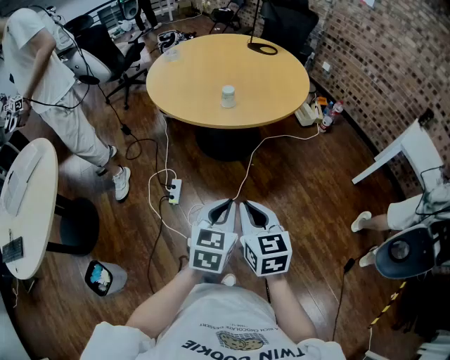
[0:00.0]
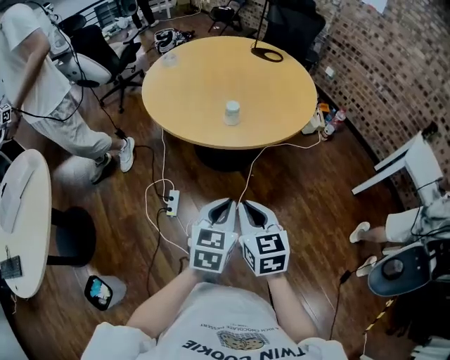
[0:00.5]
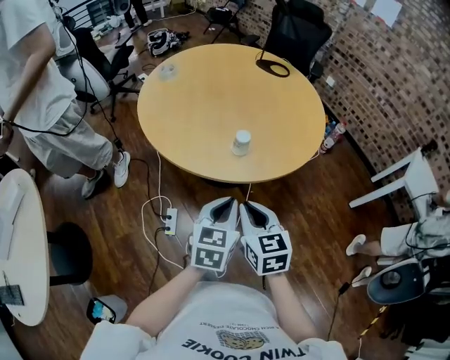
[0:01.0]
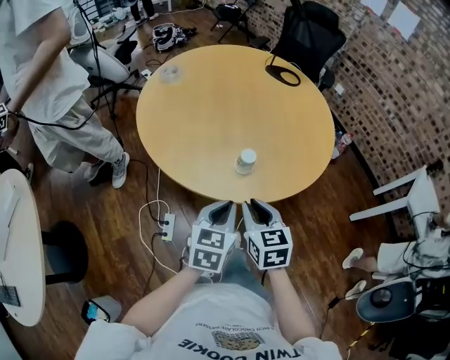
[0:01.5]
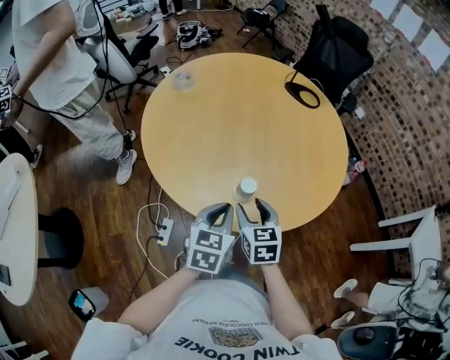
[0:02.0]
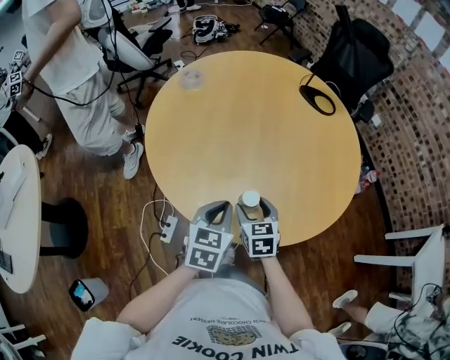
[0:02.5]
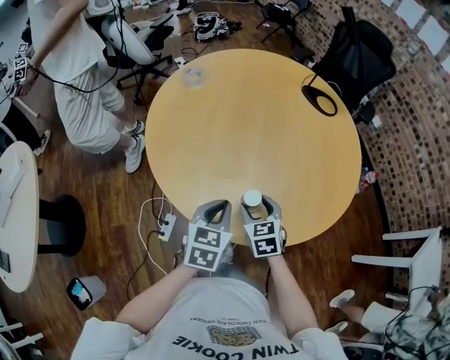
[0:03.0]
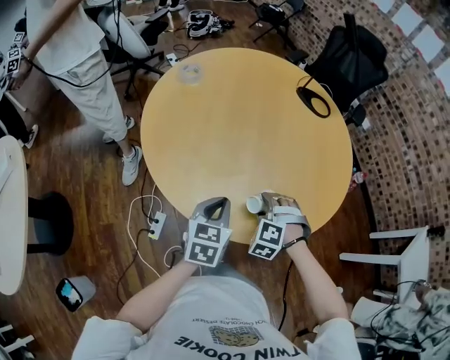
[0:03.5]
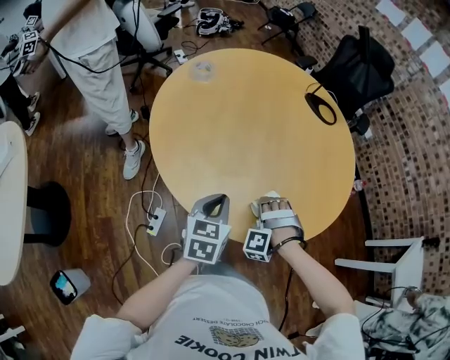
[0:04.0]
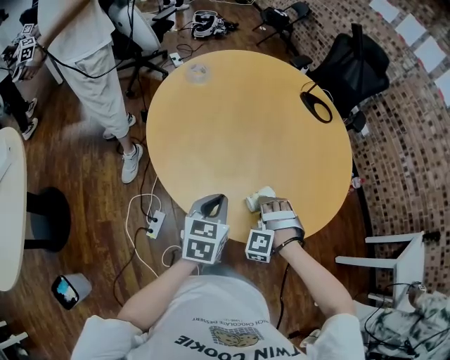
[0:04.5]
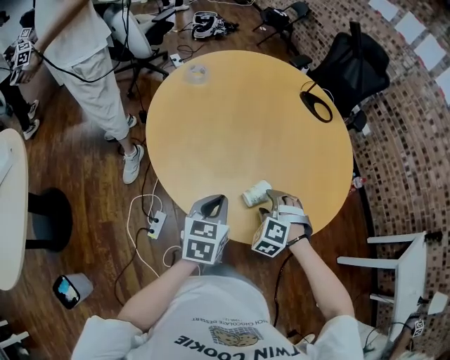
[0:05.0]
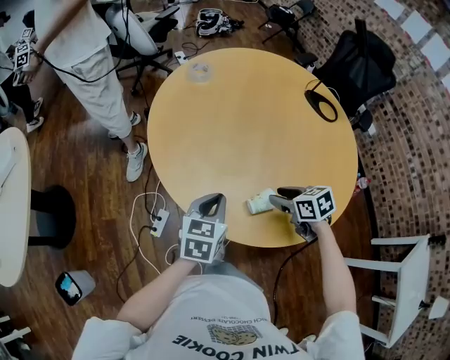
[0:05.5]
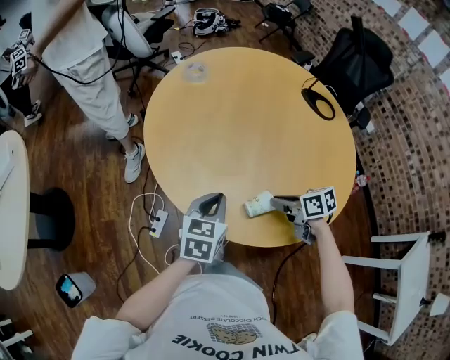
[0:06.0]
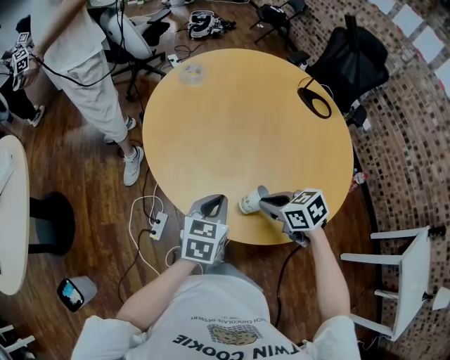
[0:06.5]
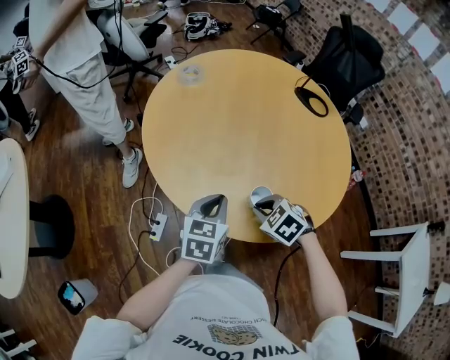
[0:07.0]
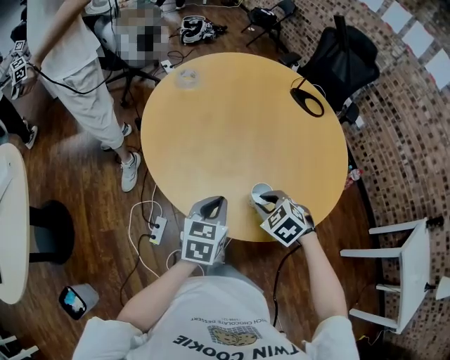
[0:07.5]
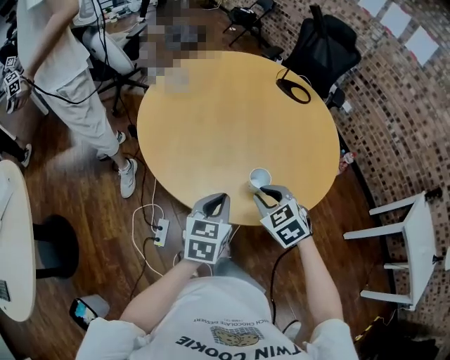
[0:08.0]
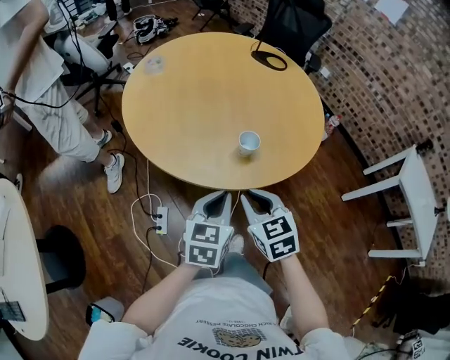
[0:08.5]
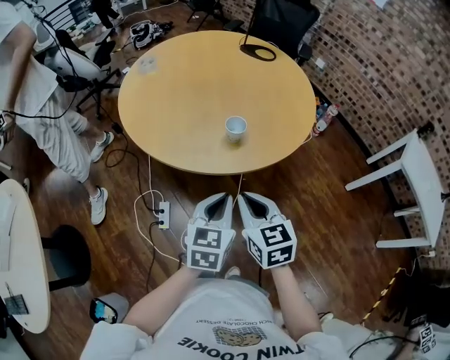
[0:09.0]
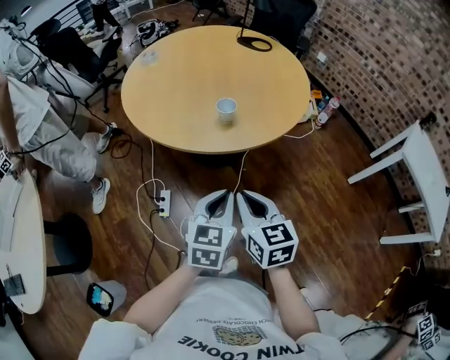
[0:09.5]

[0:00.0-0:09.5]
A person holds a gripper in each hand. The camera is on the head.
0:00.0 to 0:02.0: The pair of grippers is taken forward, some 50 cm. The right gripper opens its fingers.
0:02.0 to 0:04.0: The left gripper travels to the left and forward by roughly 10 cm. The right gripper travels downward and forward by some 10 cm, and rotates around the line of its fingers by about 110 degrees, counterclockwise from behind.
0:04.0 to 0:05.5: The right gripper travels upward by about 5 cm, and rolls clockwise, seen from behind, by some 90 degrees.
0:05.5 to 0:07.5: The right gripper shifts roughly 5 cm to the left, turns by some 40 degrees, and closes its fingers.
0:07.5 to 0:09.5: The grippers both shift backward by roughly 30 cm. The right gripper tilts its fingers some 40 degrees upward.

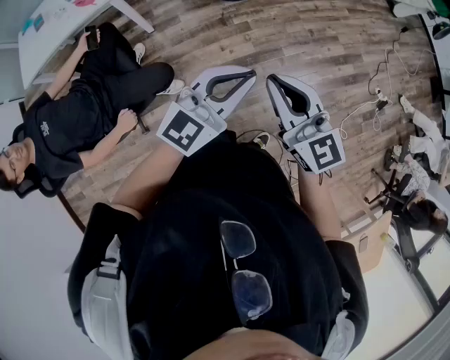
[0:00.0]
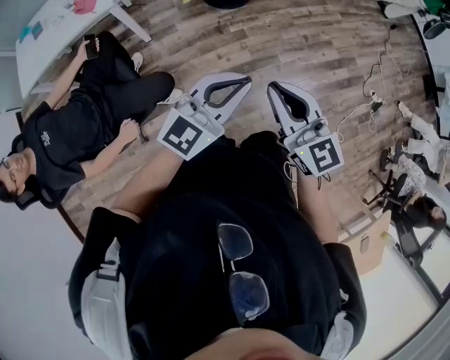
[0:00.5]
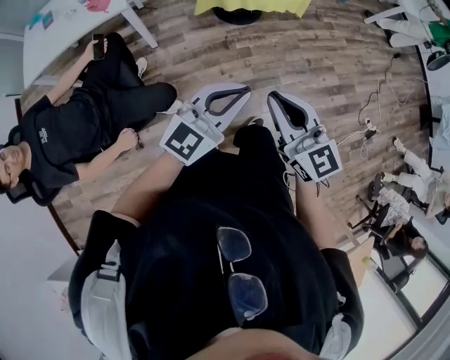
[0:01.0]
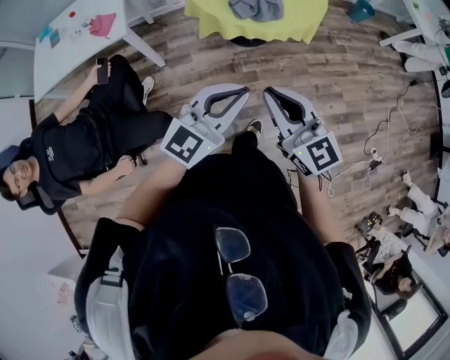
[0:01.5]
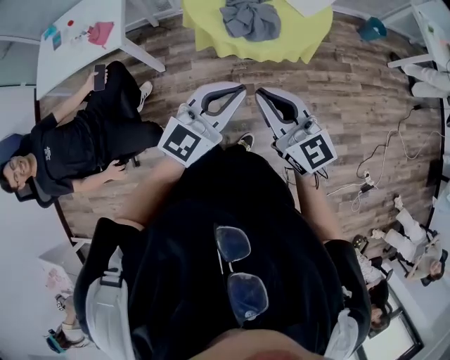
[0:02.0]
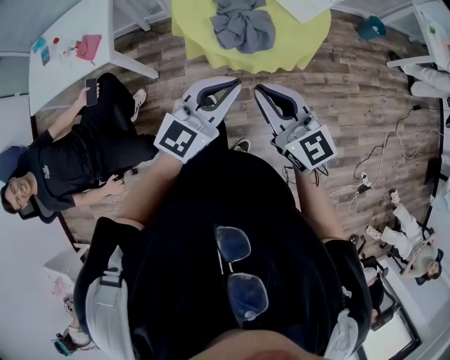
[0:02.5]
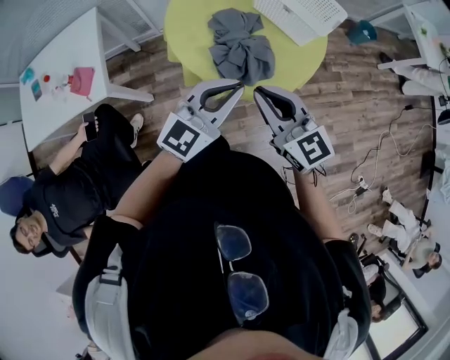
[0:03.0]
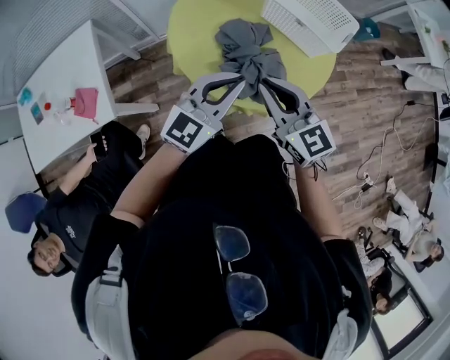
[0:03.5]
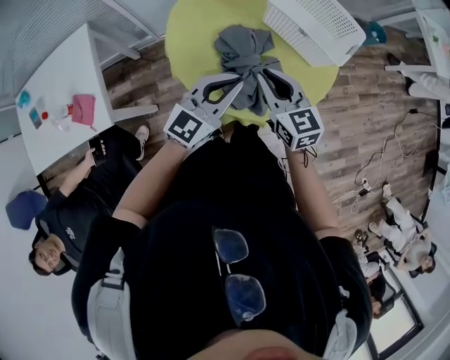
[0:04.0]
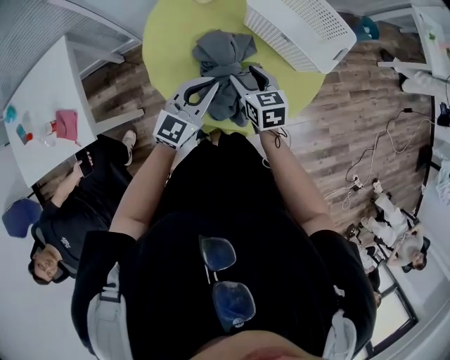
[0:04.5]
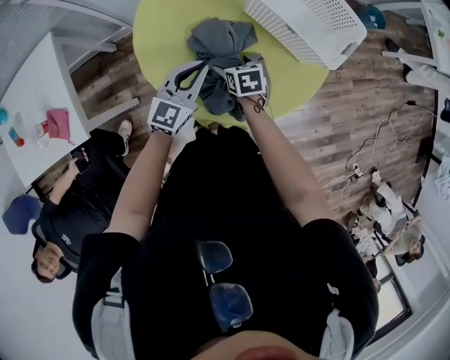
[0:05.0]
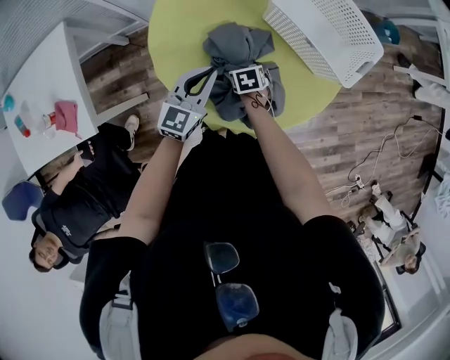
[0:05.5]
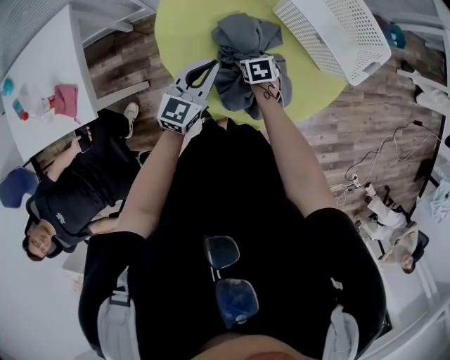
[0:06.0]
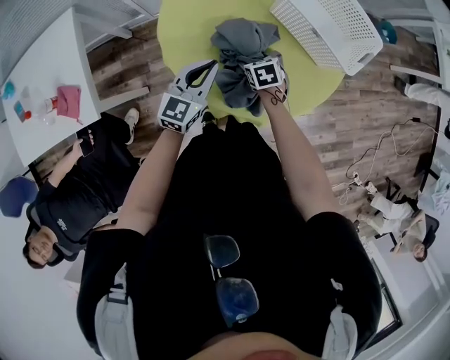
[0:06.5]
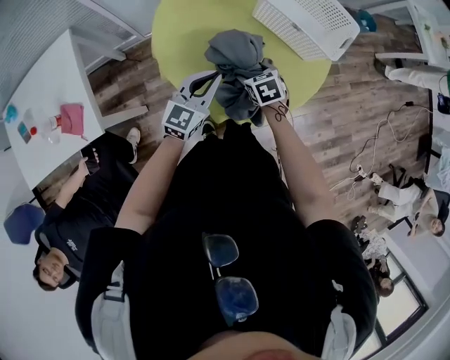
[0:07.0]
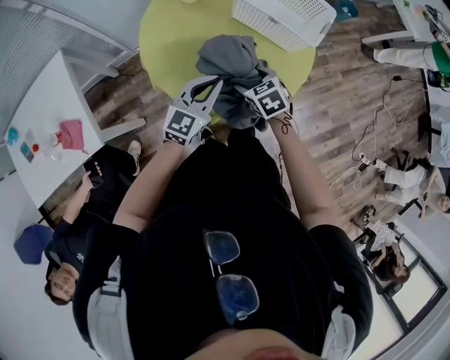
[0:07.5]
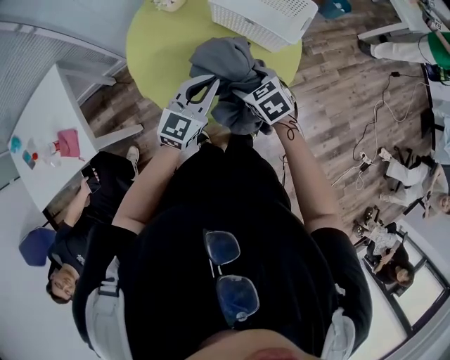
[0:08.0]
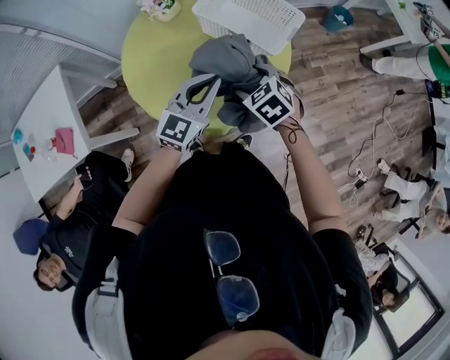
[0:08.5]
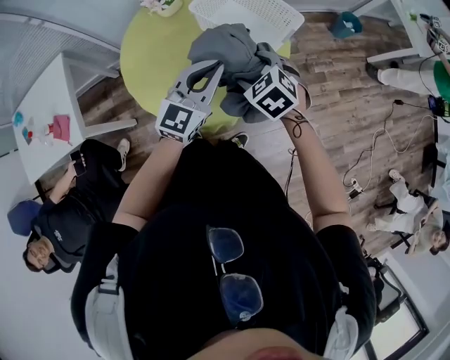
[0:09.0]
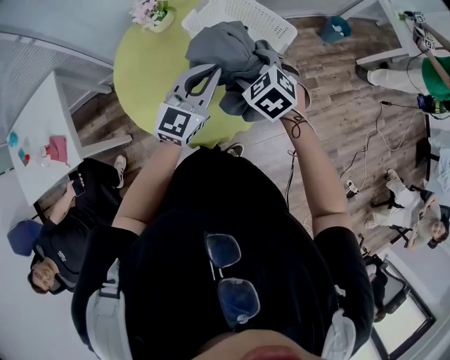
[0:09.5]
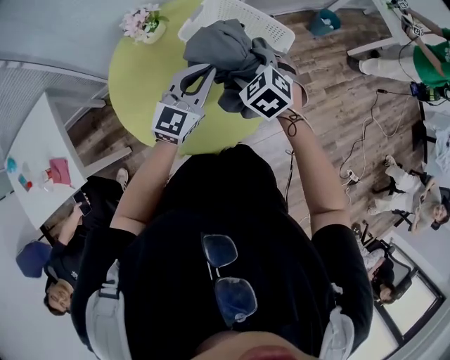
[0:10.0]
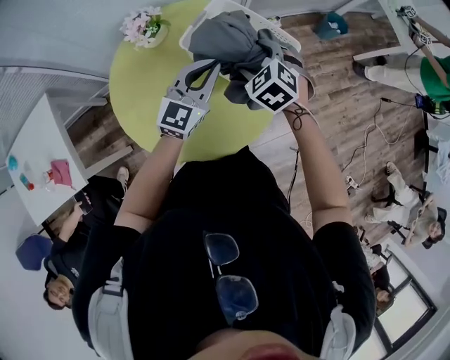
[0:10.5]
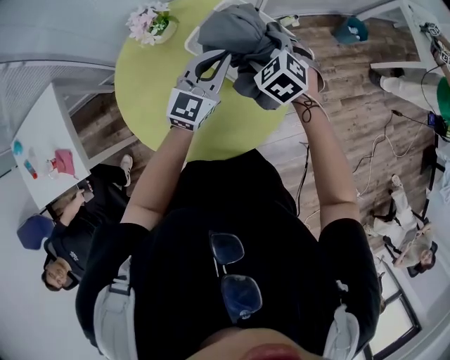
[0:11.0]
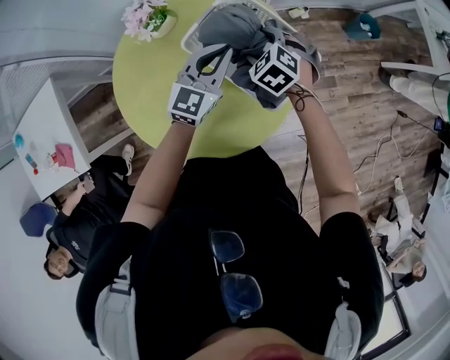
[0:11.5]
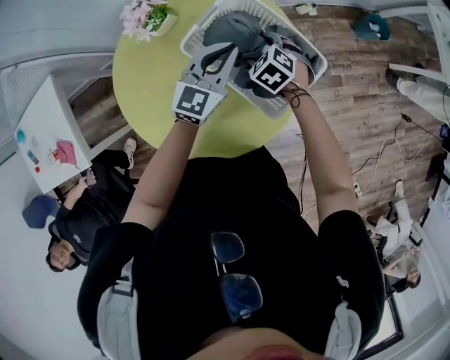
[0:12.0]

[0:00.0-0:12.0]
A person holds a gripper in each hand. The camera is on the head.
0:00.0 to 0:02.0: Both grippers travel together forward, roughly 35 cm.
0:02.0 to 0:04.0: Both grippers are carried forward, about 40 cm. The right gripper swivels about 20 degrees.
0:04.0 to 0:06.0: The left gripper travels downward and forward by about 20 cm, and rotates about 20 degrees. Meanwhile the right gripper travels downward by approximately 35 cm, angles its fingers downward, by some 40 degrees, and opens its fingers.
0:06.0 to 0:08.0: The left gripper goes some 20 cm to the right, upward and backward, and changes its angle by roughly 20 degrees. The right gripper goes about 30 cm upward, backward and to the right.
0:08.0 to 0:10.0: The right gripper travels forward, to the right and upward by about 20 cm, and swivels about 20 degrees; the left gripper is displaced forward and to the right by approximately 15 cm.
0:10.0 to 0:12.0: The grippers both shift forward and downward by roughly 20 cm.

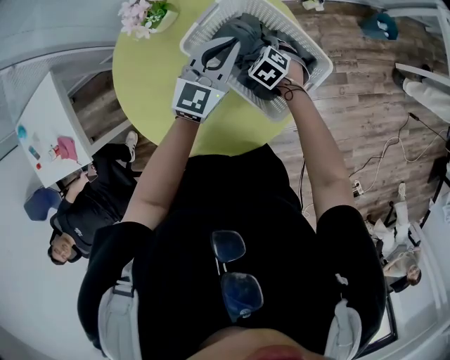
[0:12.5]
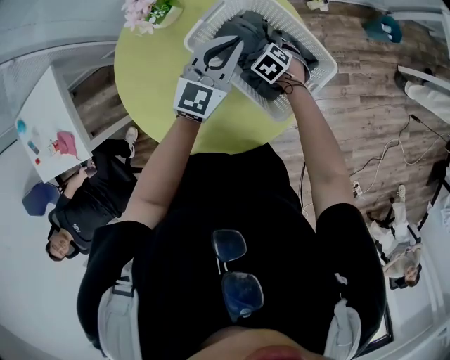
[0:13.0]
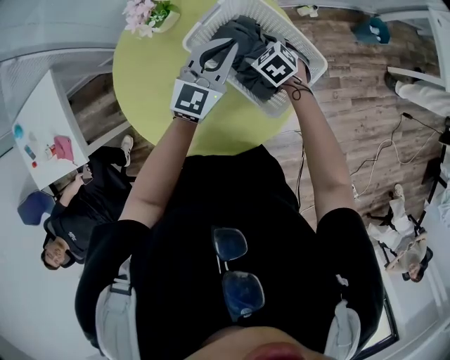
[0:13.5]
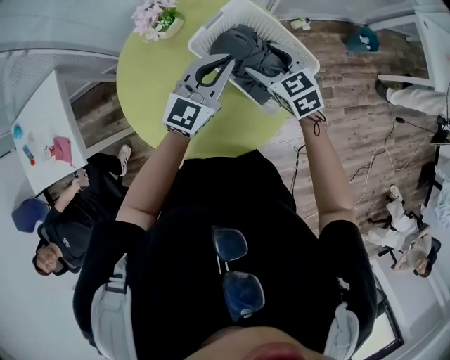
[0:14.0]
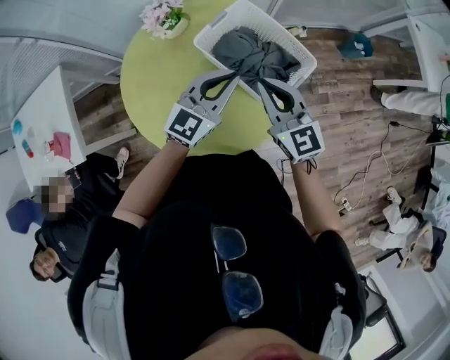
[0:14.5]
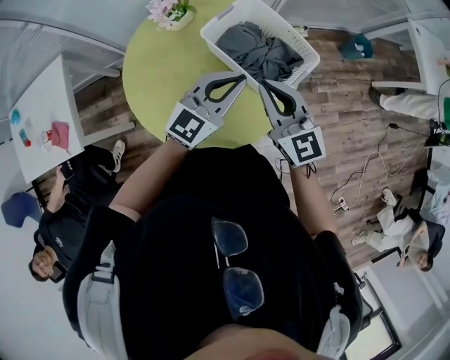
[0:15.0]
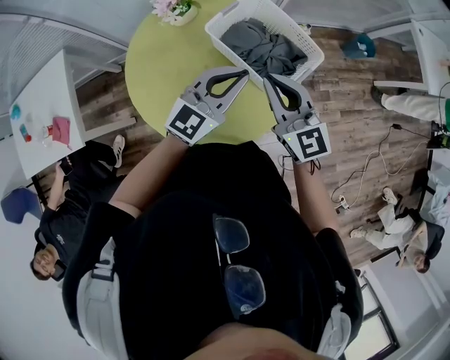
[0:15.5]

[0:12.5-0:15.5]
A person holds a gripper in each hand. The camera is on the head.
0:12.5 to 0:14.0: The left gripper moves upward and backward, some 10 cm; the right gripper moves upward, roughly 20 cm, and tips its fingers upward by roughly 30 degrees.
0:14.0 to 0:15.5: The right gripper travels backward and upward by roughly 20 cm, turns by approximately 30 degrees, and closes. Meanwhile the left gripper moves backward, some 10 cm.

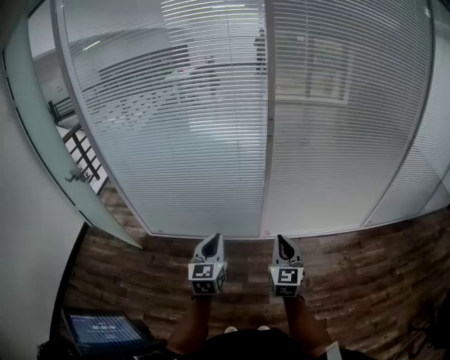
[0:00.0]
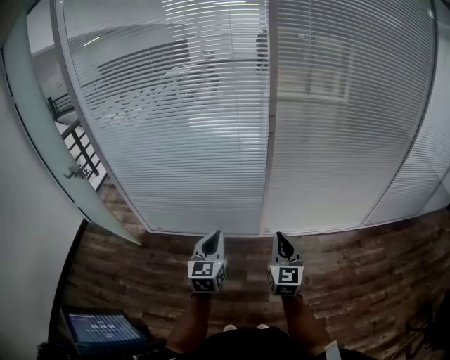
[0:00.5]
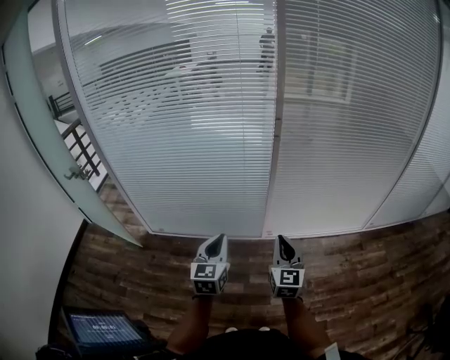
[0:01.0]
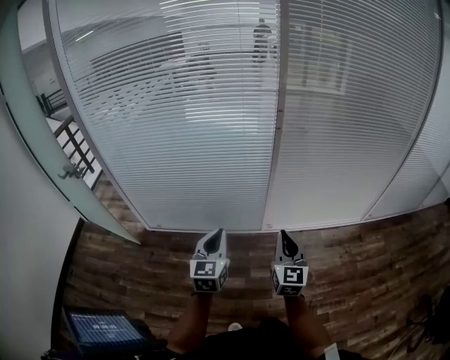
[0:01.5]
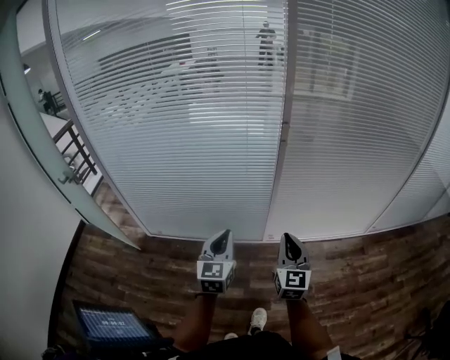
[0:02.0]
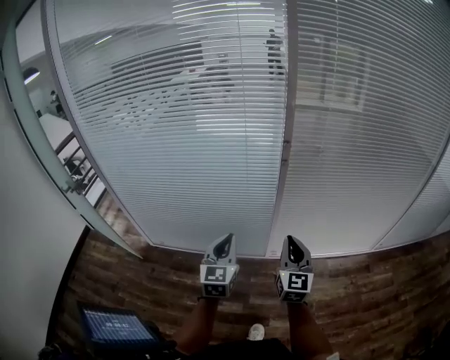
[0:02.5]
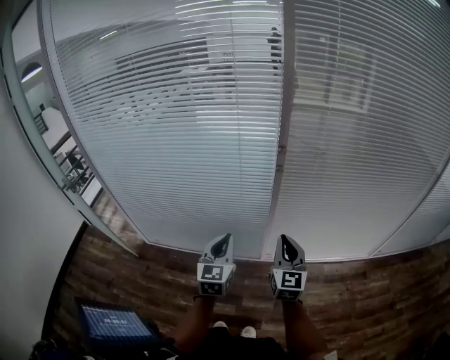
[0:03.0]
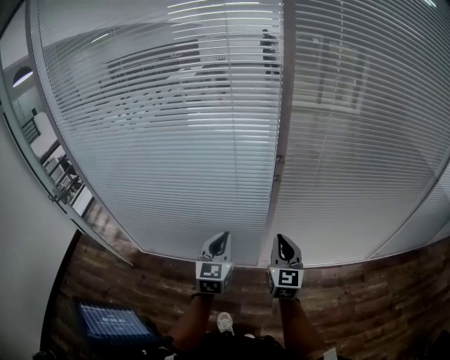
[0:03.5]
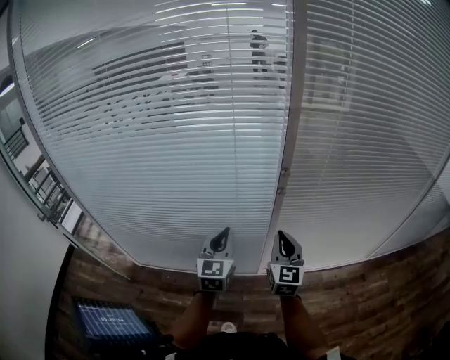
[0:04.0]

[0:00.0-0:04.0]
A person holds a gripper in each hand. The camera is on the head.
0:00.0 to 0:02.0: The grippers both shift forward by roughly 10 cm.
0:02.0 to 0:04.0: Both grippers move forward, approximately 25 cm.
